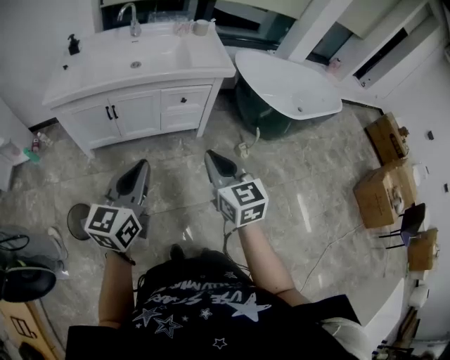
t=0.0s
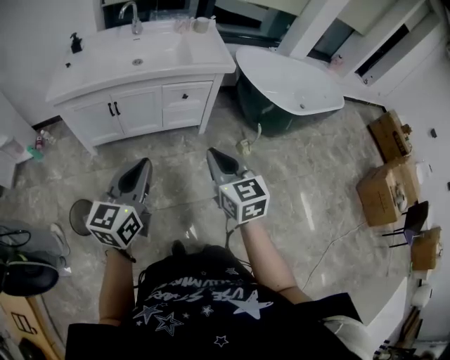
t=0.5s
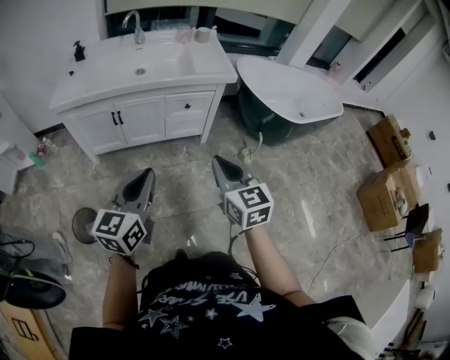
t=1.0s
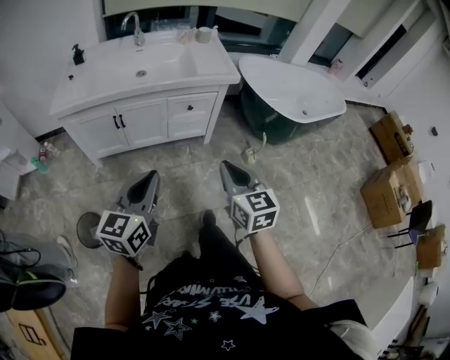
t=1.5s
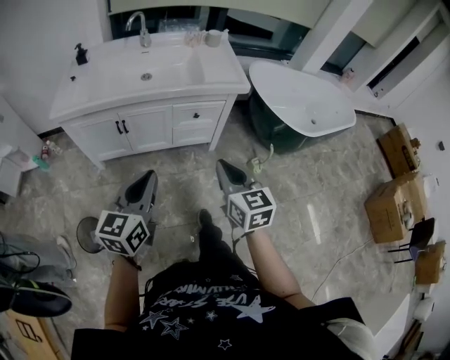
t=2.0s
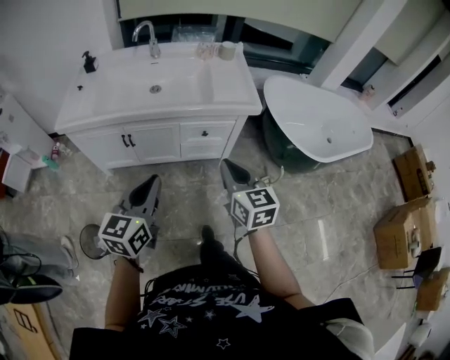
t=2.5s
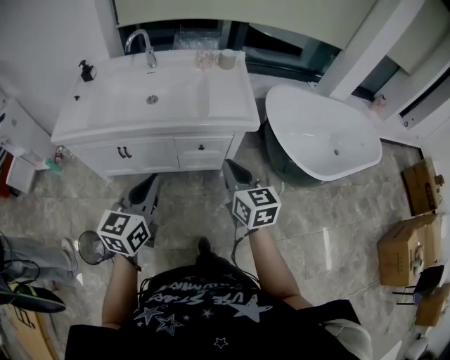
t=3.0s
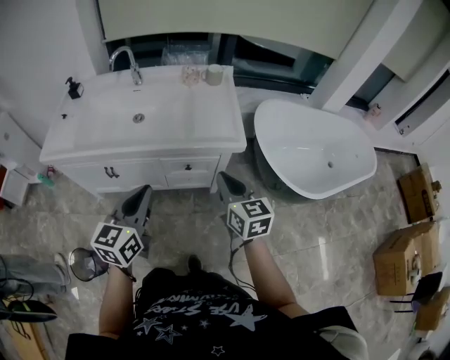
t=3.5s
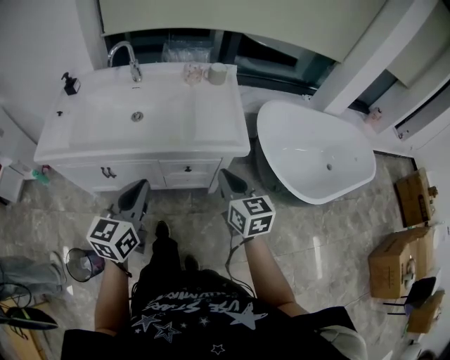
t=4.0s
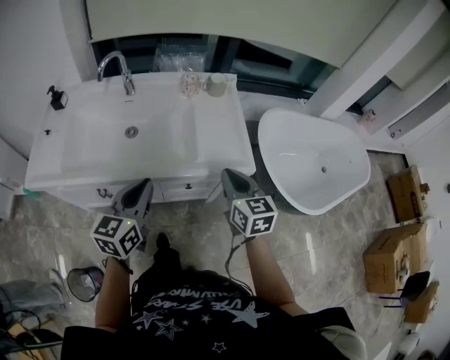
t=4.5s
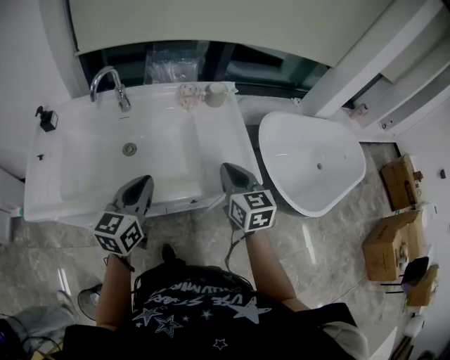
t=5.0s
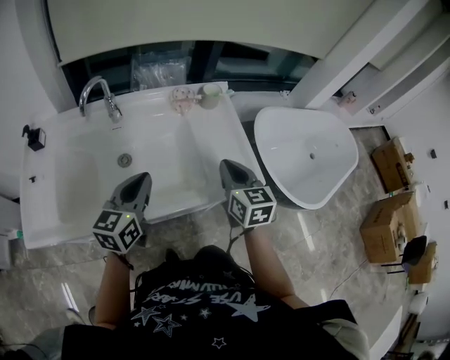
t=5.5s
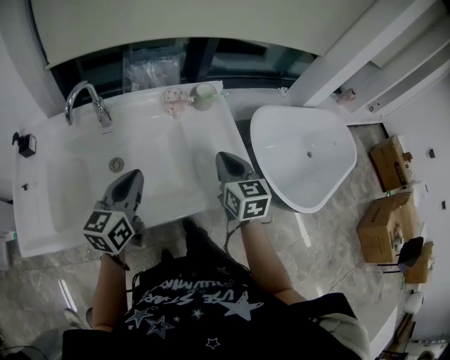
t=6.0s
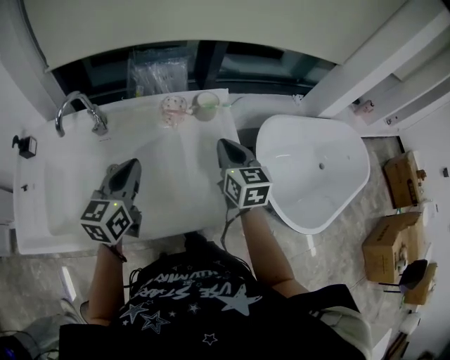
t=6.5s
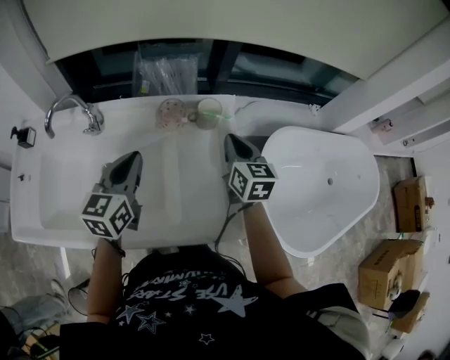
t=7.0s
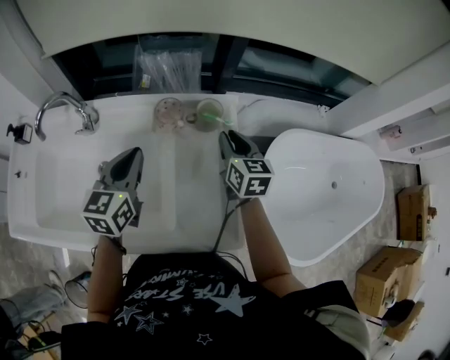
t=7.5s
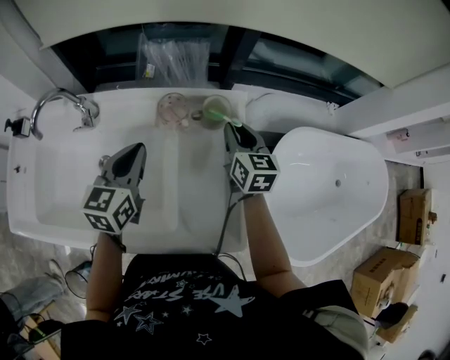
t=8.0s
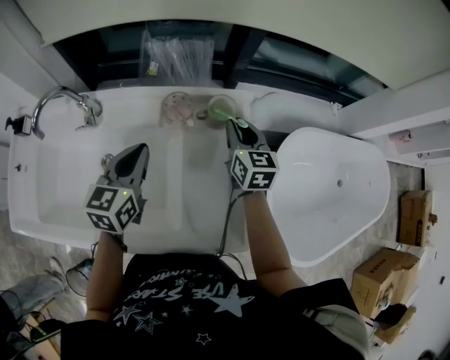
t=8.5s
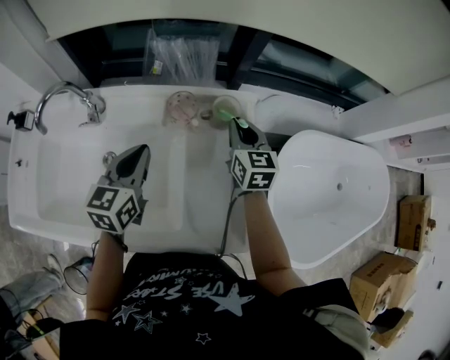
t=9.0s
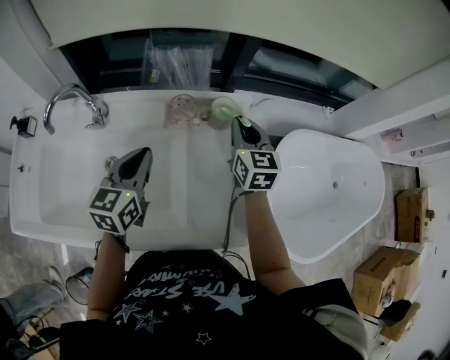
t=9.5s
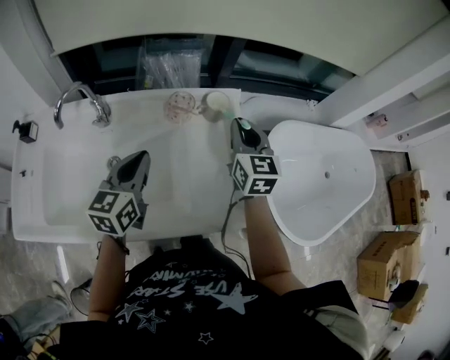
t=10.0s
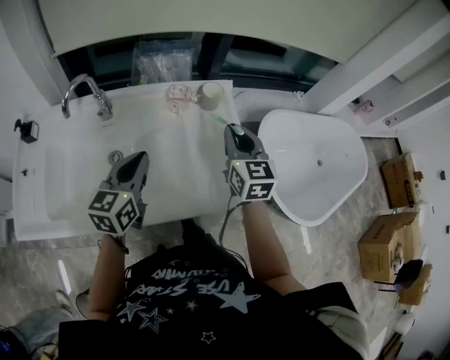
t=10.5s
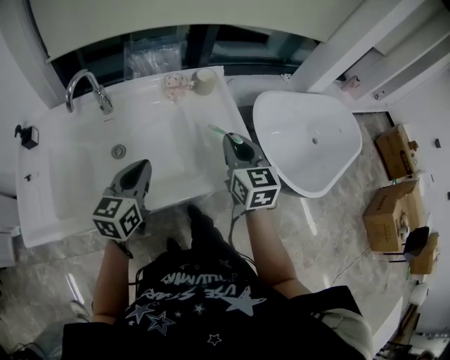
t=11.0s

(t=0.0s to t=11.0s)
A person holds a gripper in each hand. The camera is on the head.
t=0.0s - t=2.0s: Both grippers move forward, approximately 10 cm.
t=2.0s - t=3.5s: Both grippers travel together forward and to the right, about 30 cm.
t=3.5s - t=5.5s: The left gripper shifts some 35 cm forward and to the left, while the right gripper moves forward, approximately 25 cm.
t=5.5s - t=7.5s: The right gripper goes roughly 30 cm forward. The left gripper is displaced forward and to the right by about 25 cm.
t=7.5s - t=9.0s: The right gripper shifts by roughly 5 cm.
t=9.0s - t=11.0s: Both grippers travel together backward, about 25 cm.

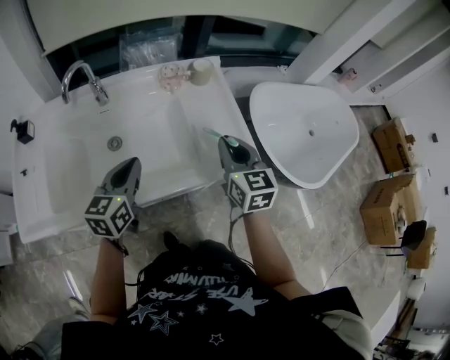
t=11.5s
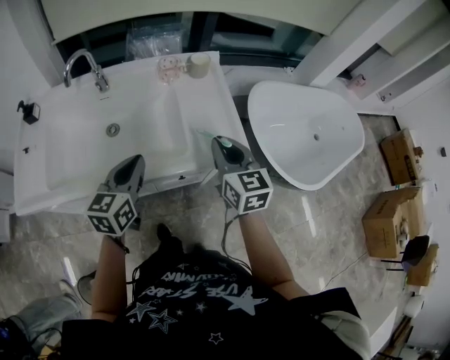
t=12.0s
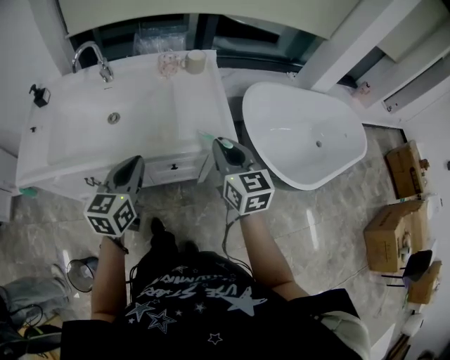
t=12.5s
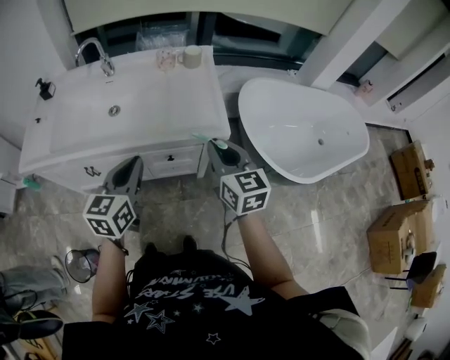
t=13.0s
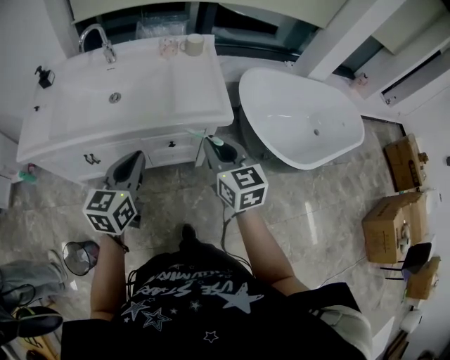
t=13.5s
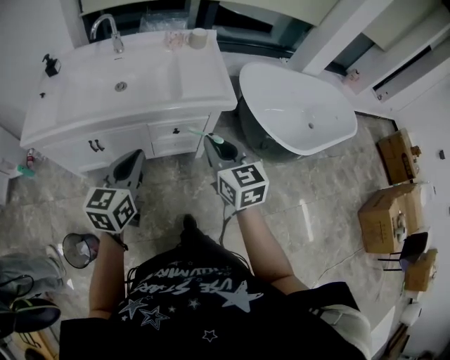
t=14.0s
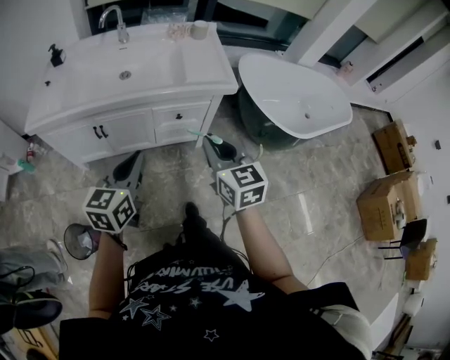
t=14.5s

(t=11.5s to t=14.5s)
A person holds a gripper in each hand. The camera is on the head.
t=11.5s - t=13.0s: The grippers both shift backward and to the right by roughly 20 cm.
t=13.0s - t=14.5s: The grippers both shift backward and to the left by about 25 cm.

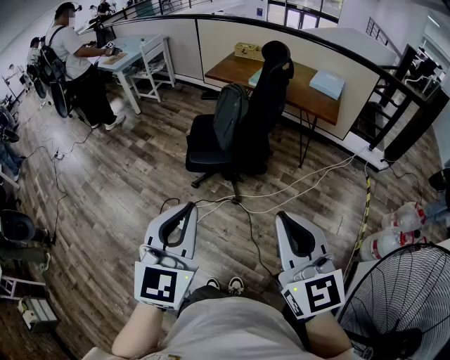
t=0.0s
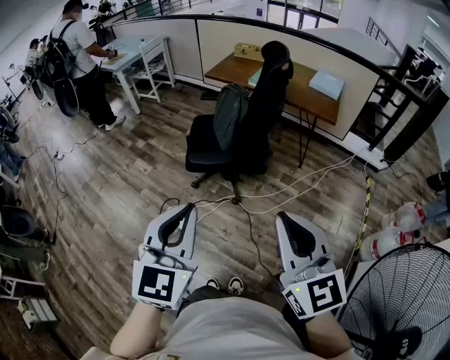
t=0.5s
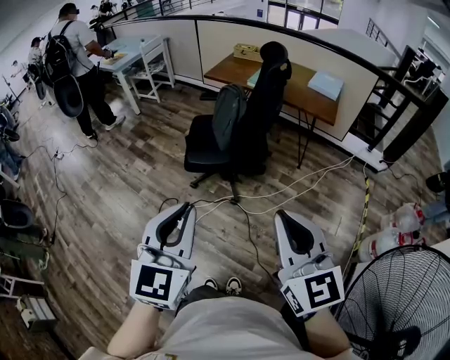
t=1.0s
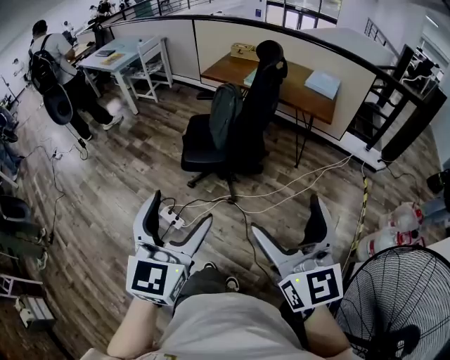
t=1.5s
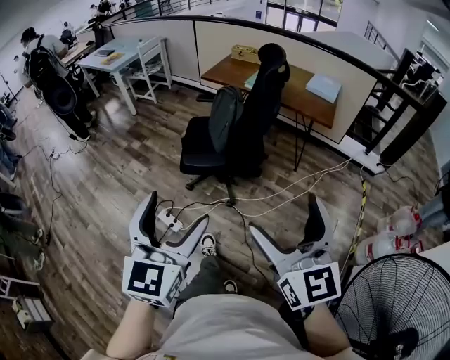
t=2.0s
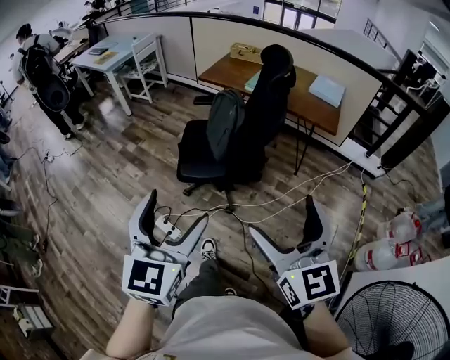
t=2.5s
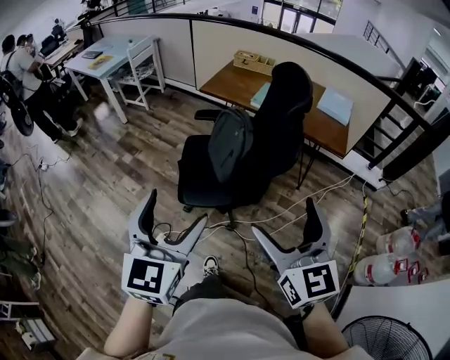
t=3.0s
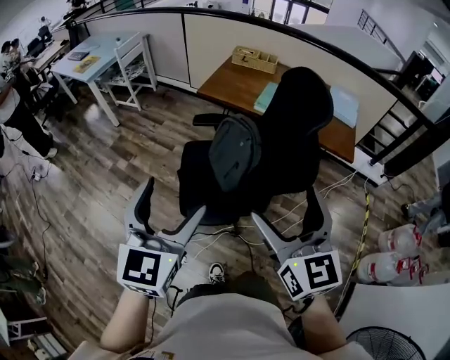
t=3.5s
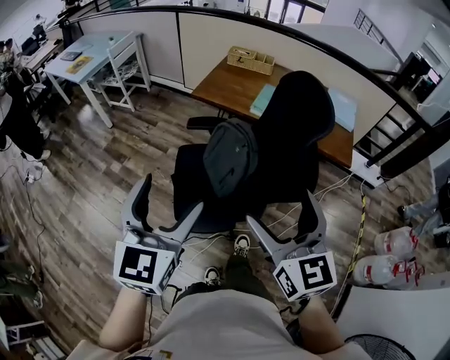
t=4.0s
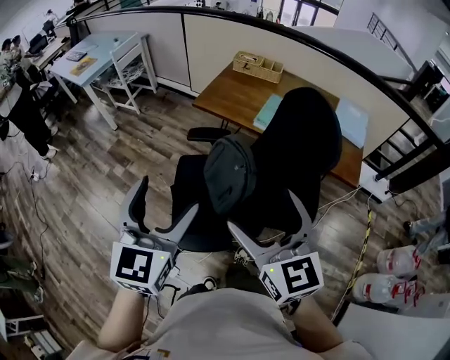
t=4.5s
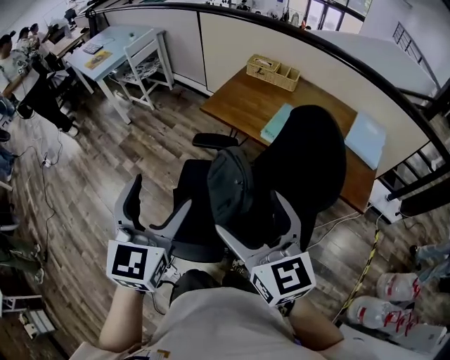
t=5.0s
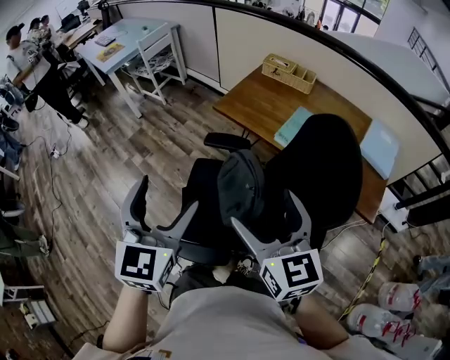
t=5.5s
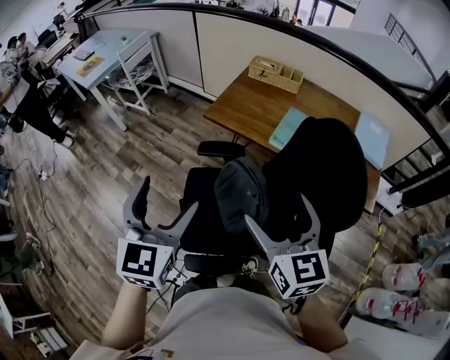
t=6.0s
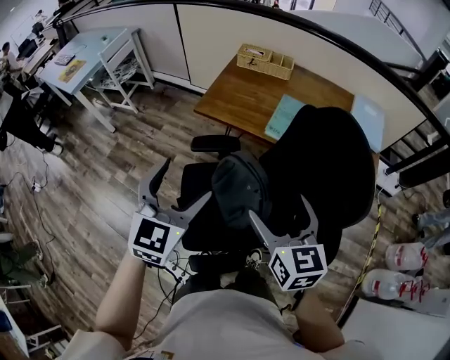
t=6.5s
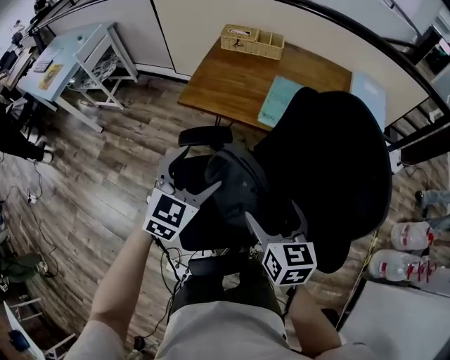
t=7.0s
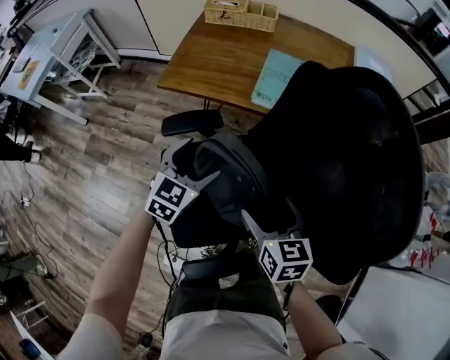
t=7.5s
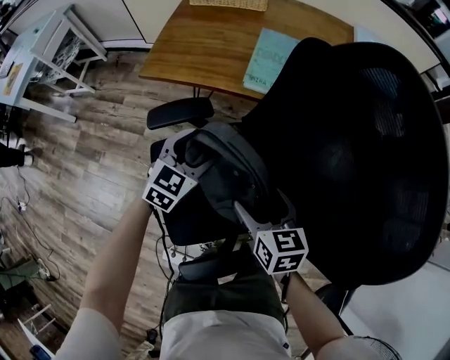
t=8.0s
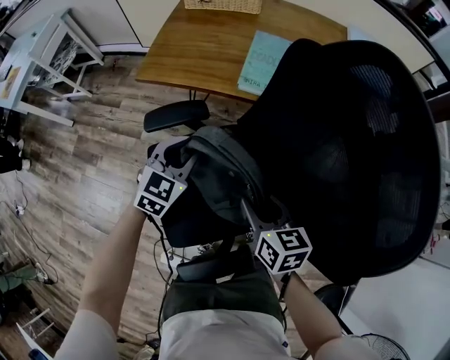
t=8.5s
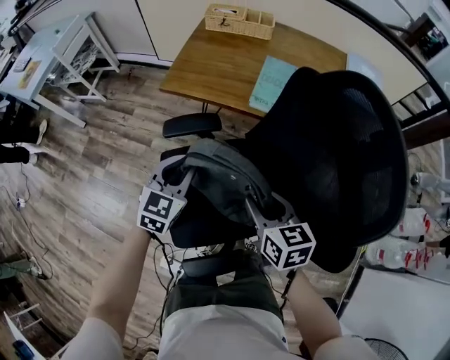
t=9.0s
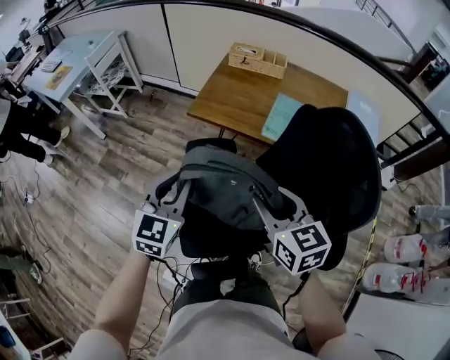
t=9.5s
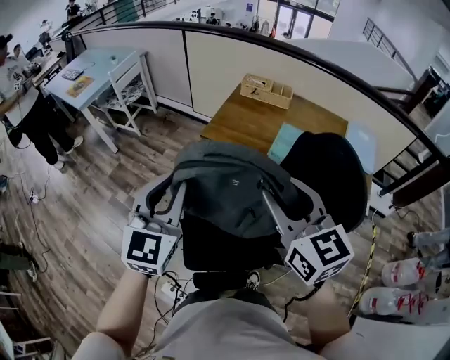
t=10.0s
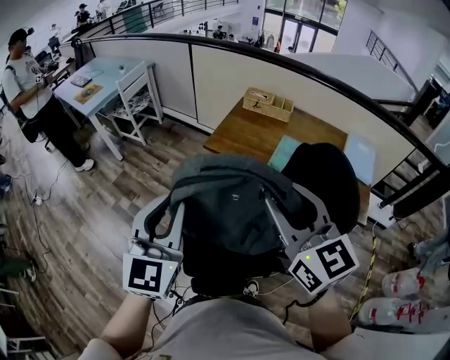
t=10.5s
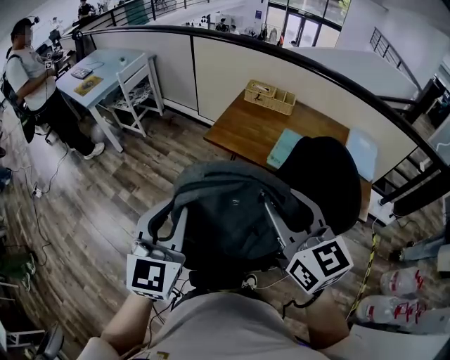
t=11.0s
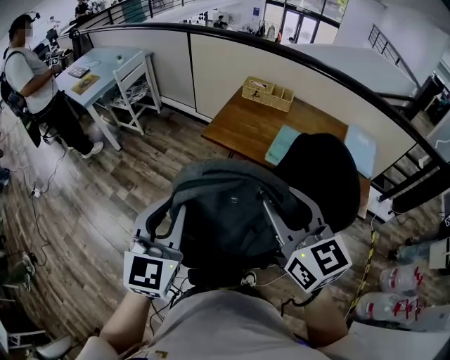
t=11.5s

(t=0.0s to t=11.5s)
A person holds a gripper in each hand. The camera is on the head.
t=0.0s - t=2.0s: The left gripper opens up; the right gripper opens.
t=2.0s - t=4.0s: Both grippers are carried forward, some 50 cm.
t=4.0s - t=6.0s: The grippers both shift forward by about 25 cm.
t=6.0s - t=7.5s: The right gripper heads downward, covering roughly 25 cm, and turns by roughly 30 degrees, while the left gripper heads downward and forward, covering about 35 cm, and rotates roughly 40 degrees.
t=7.5s - t=9.5s: The left gripper is displaced upward, to the left and backward by roughly 20 cm, swivels approximately 20 degrees, and closes; the right gripper goes about 15 cm upward, turns by roughly 20 degrees, and closes its fingers.
t=9.5s - t=11.5s: The right gripper travels upward by approximately 15 cm, and rotates about 20 degrees, while the left gripper is displaced upward and backward by approximately 20 cm.

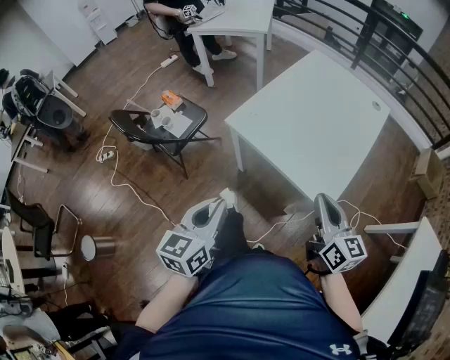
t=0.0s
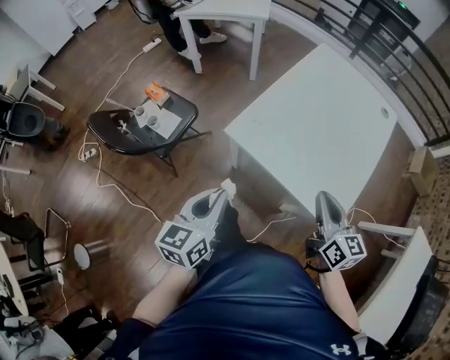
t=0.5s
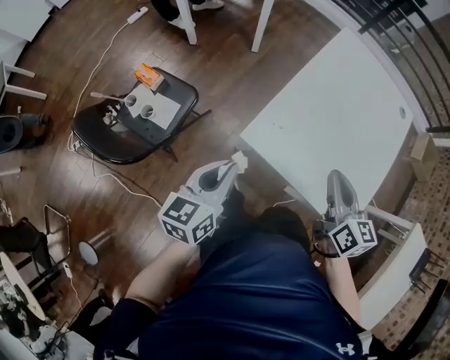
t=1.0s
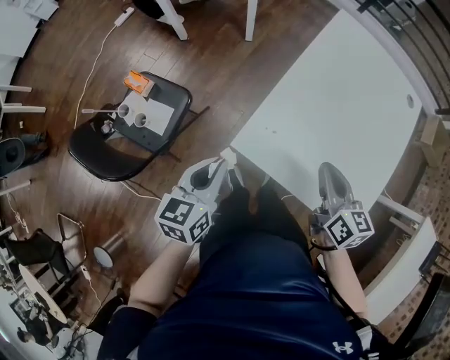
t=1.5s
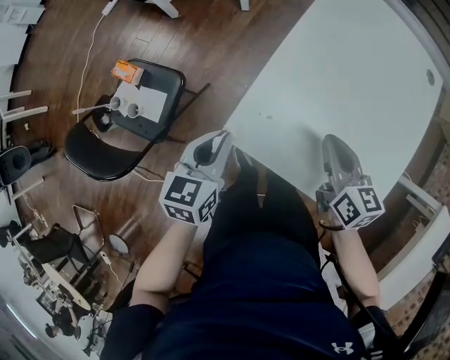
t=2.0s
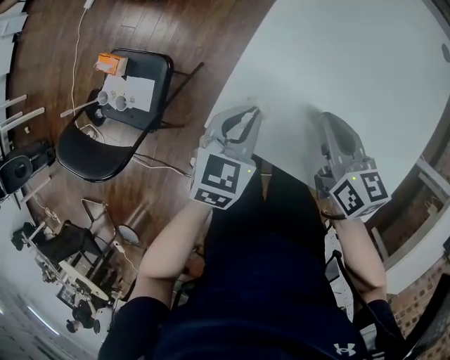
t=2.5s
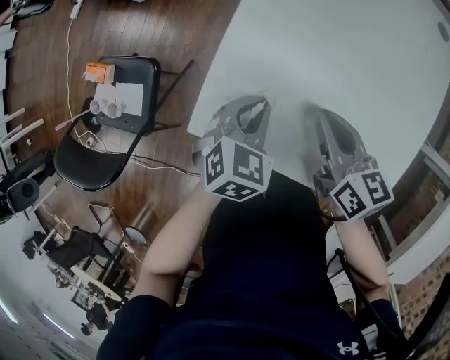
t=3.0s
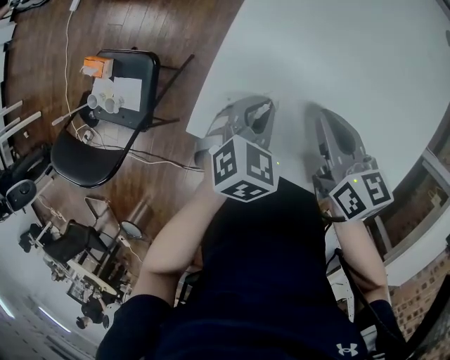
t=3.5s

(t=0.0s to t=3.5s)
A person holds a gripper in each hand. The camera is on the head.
t=0.0s - t=2.0s: Both grippers travel together forward and downward, some 40 cm. The left gripper turns by some 20 degrees; the right gripper rotates roughly 20 degrees.
t=2.0s - t=3.5s: The right gripper travels downward by about 5 cm, while the left gripper heads to the right and downward, covering roughly 20 cm, and changes its angle by roughly 40 degrees.
